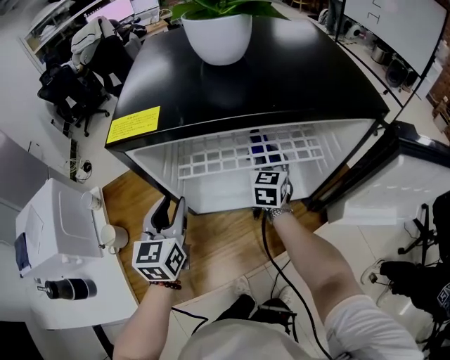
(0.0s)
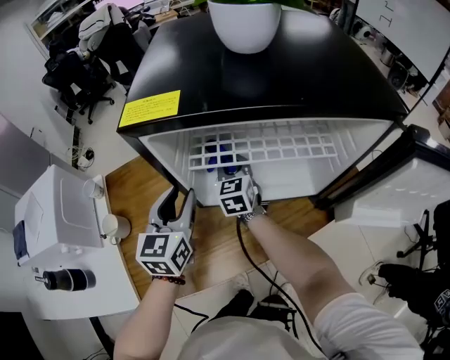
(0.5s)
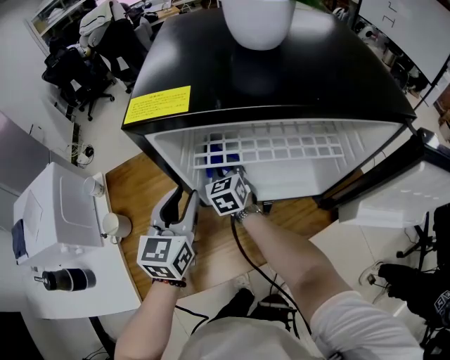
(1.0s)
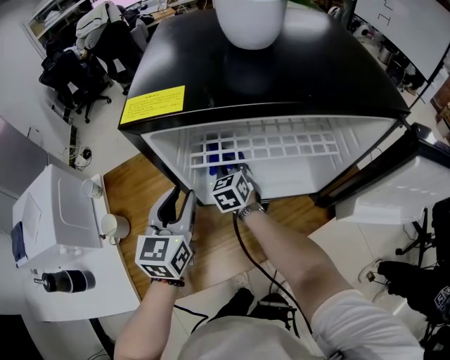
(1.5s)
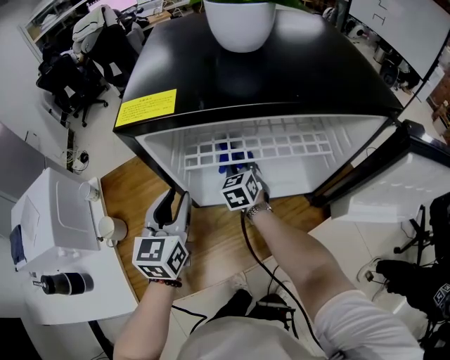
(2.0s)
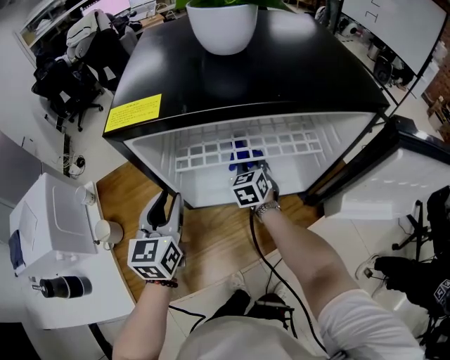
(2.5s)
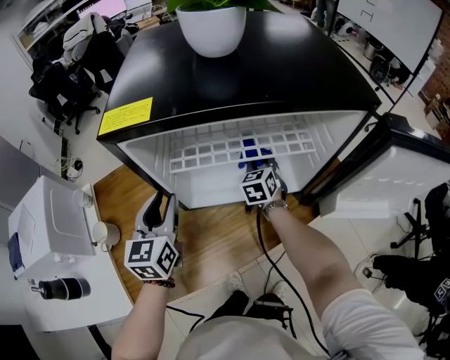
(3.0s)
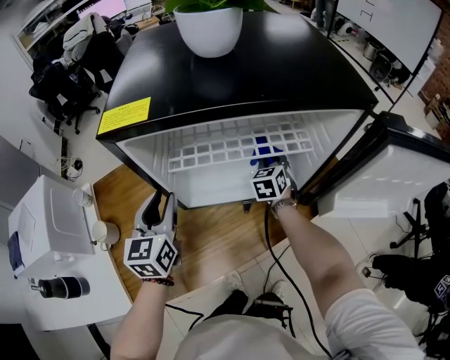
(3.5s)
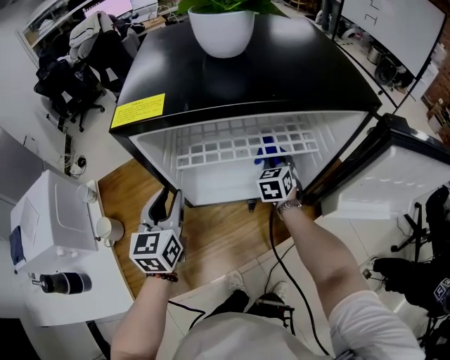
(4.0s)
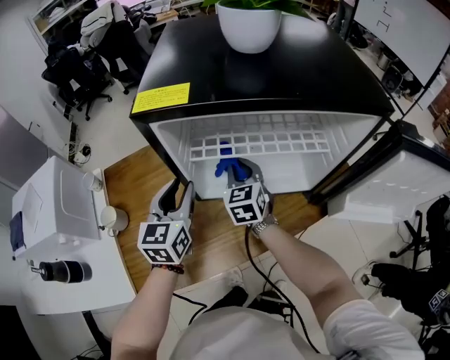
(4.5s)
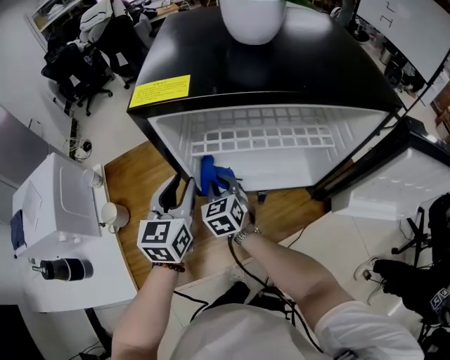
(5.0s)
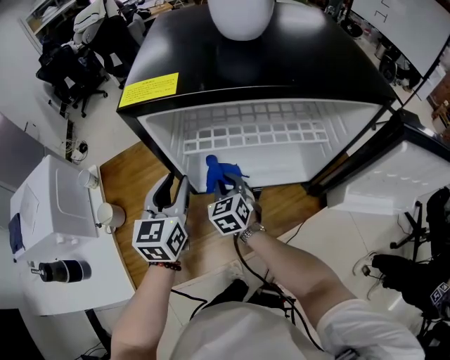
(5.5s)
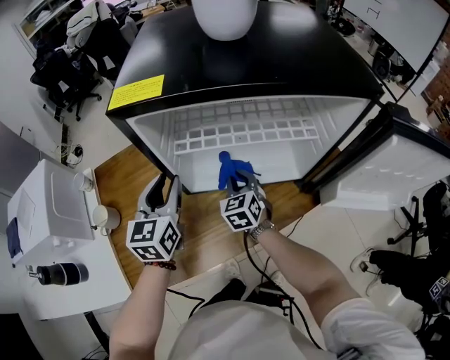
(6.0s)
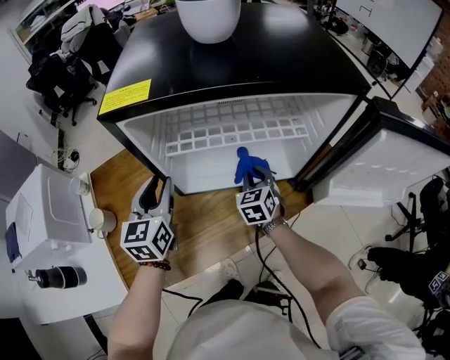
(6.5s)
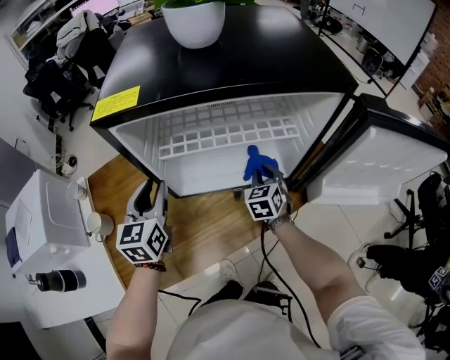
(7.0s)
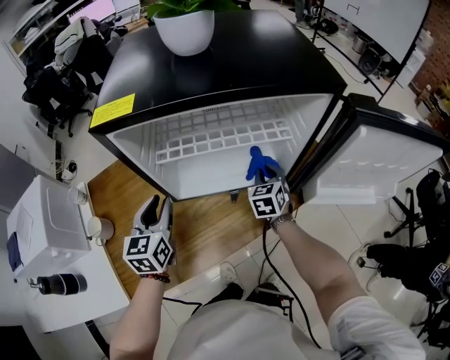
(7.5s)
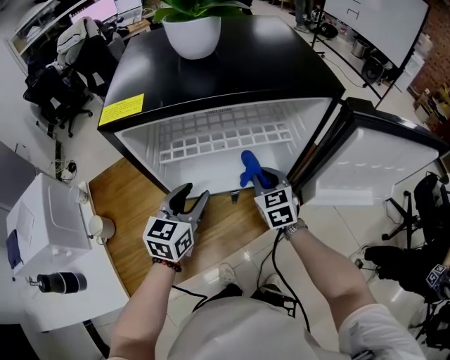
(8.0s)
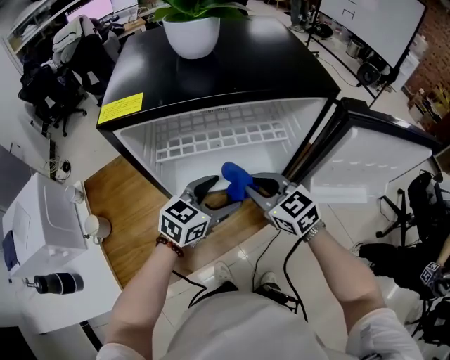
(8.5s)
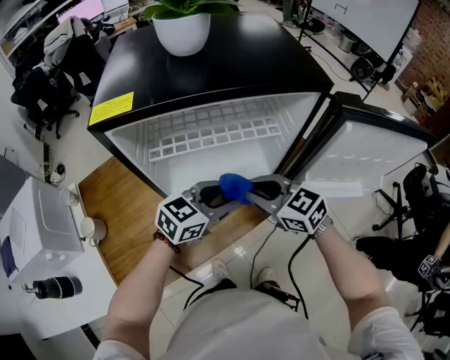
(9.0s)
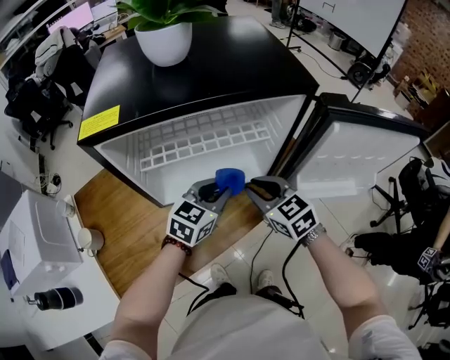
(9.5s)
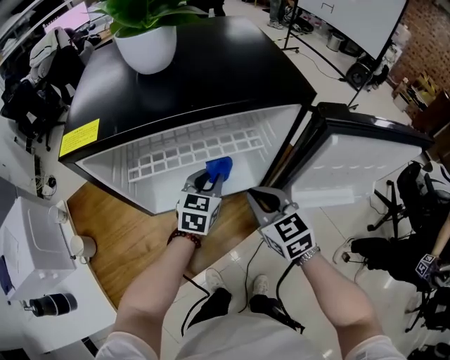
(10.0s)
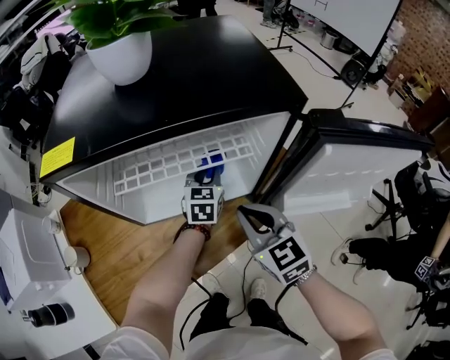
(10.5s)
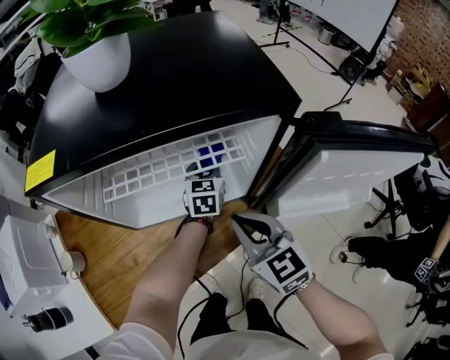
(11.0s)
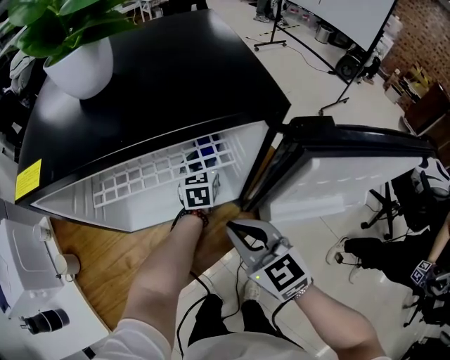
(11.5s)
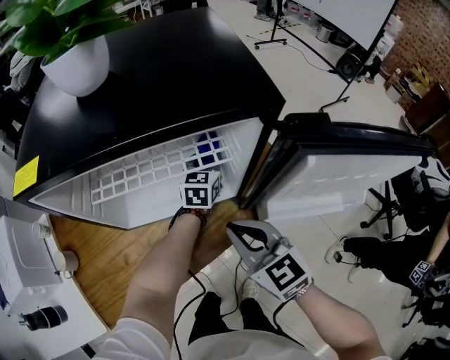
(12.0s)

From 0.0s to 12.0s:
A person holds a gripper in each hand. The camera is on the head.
From 0.0s to 2.0s: The right gripper goes about 15 cm to the left and downward, and rotates roughly 20 degrees.
From 2.0s to 4.0s: The right gripper shifts some 15 cm to the right.
From 4.0s to 6.0s: The right gripper heads to the left and backward, covering approximately 15 cm.
From 6.0s to 8.0s: The left gripper goes approximately 10 cm to the right, and swivels some 20 degrees, while the right gripper heads to the right and upward, covering roughly 15 cm.
From 8.0s to 10.0s: The right gripper moves upward and backward, some 10 cm. The left gripper moves to the right and forward, roughly 15 cm, and closes.
From 10.0s to 12.0s: The left gripper moves forward and to the right, approximately 15 cm.

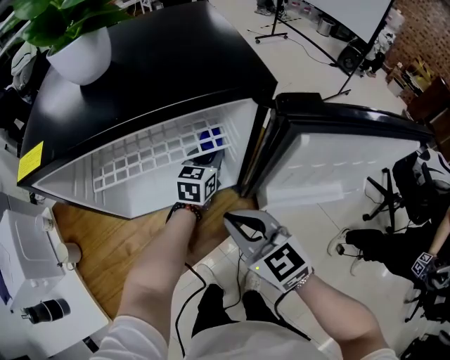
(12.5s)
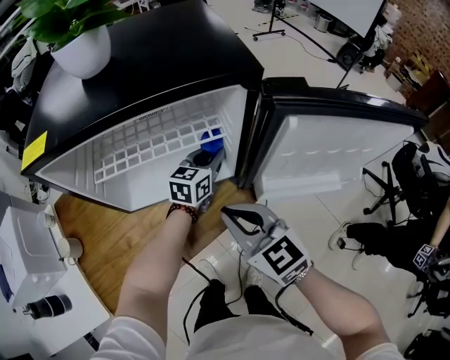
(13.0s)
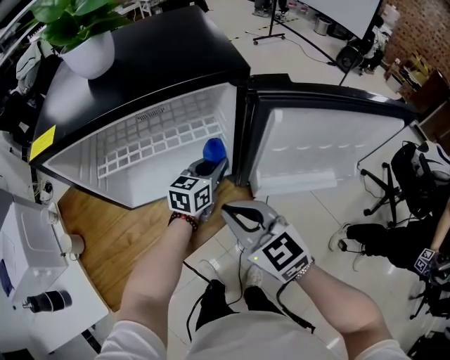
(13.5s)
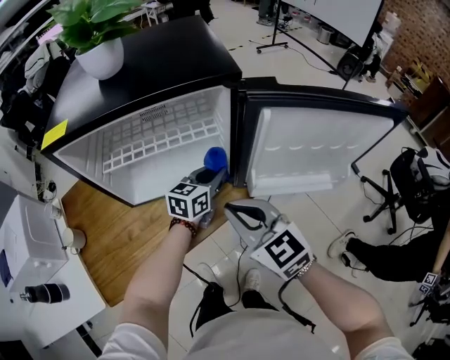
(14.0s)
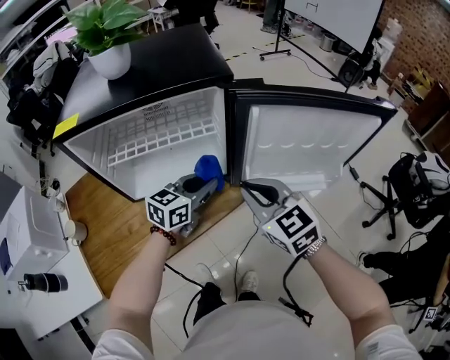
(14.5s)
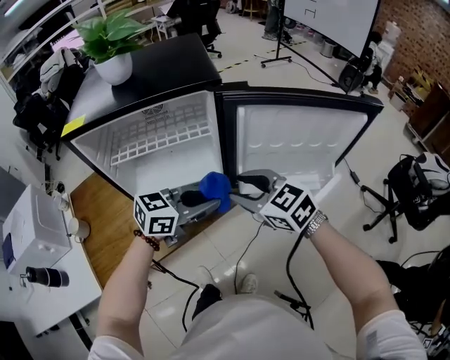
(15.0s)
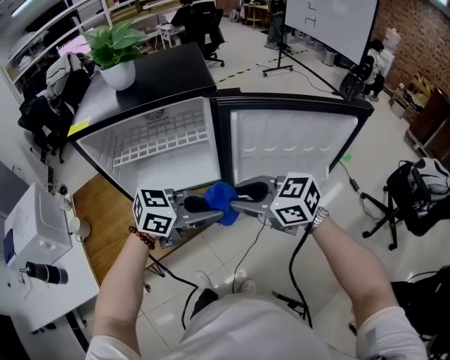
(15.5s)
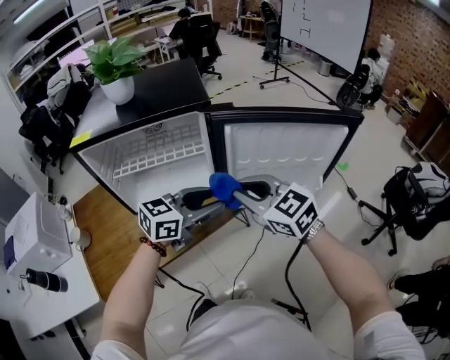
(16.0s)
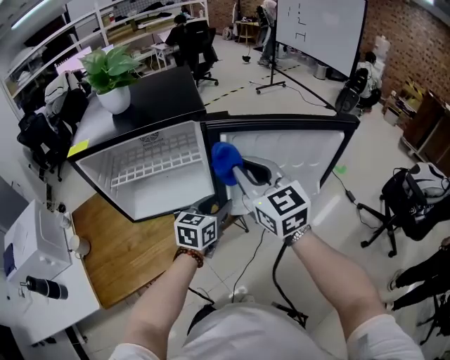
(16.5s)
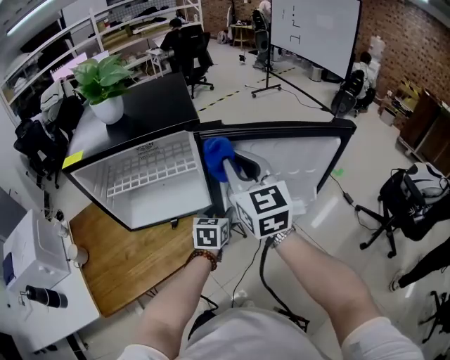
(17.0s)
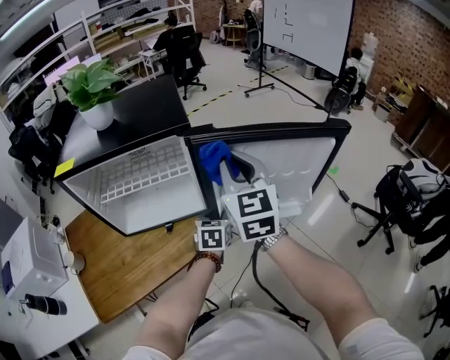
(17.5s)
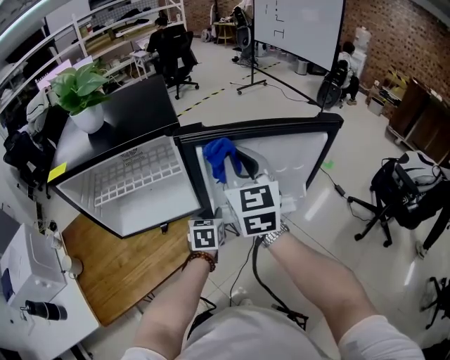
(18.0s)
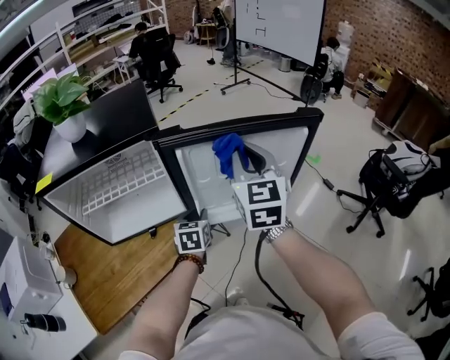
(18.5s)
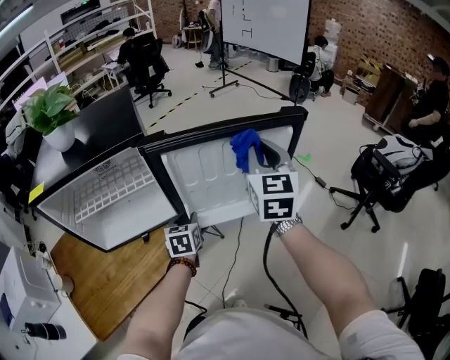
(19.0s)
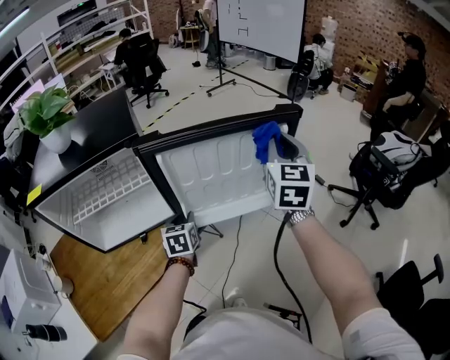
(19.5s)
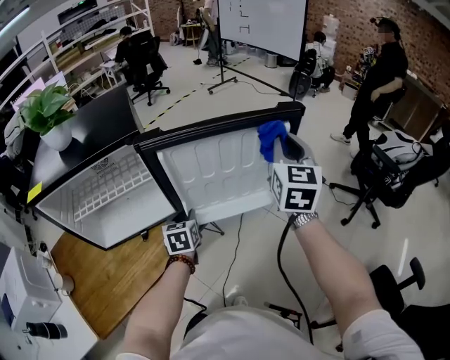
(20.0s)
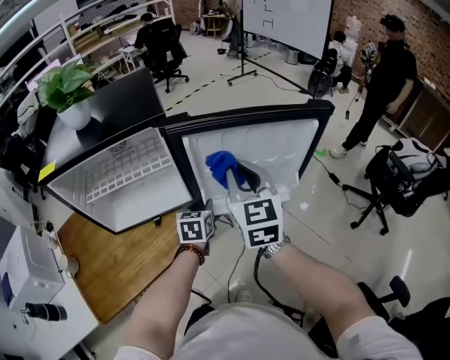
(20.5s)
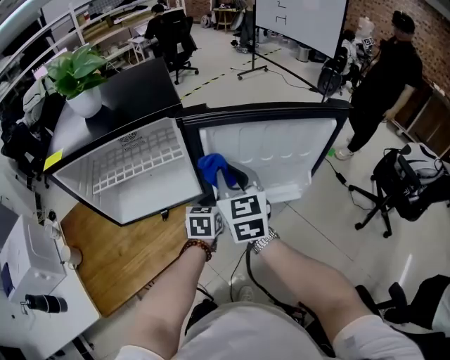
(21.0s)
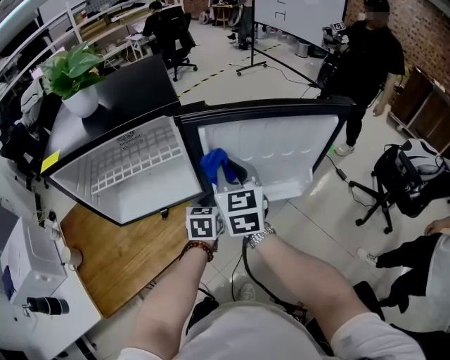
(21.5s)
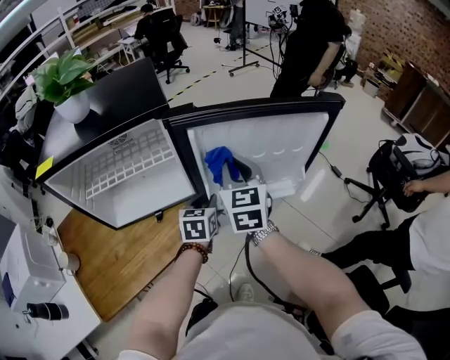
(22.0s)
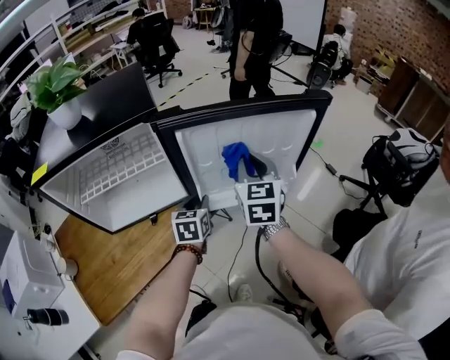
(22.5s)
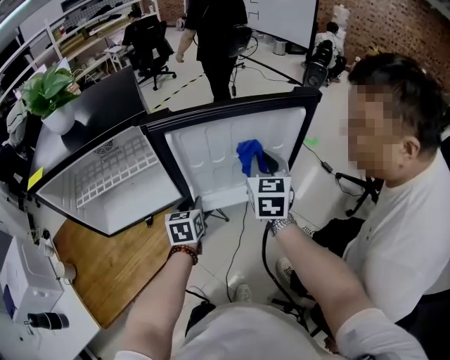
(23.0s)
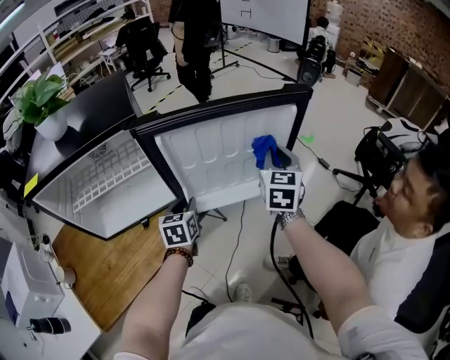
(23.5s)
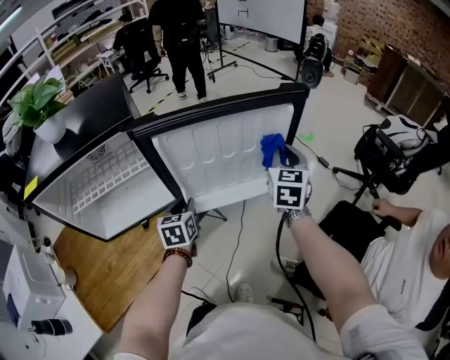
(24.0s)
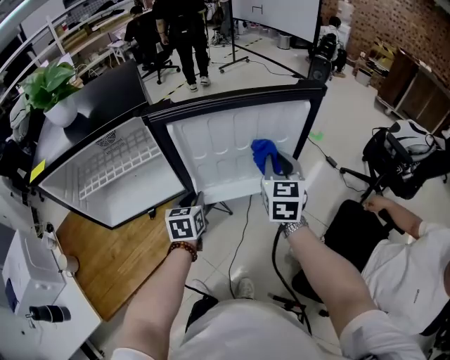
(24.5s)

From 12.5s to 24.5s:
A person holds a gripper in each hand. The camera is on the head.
From 12.5s to 14.5s: The left gripper travels backward by roughly 20 cm; the right gripper heads to the right, covering approximately 10 cm.
From 14.5s to 16.5s: The right gripper goes about 10 cm upward, and opens, then closes again; the left gripper travels upward and back again, about 10 cm each way, and opens.
From 16.5s to 18.5s: The left gripper travels downward by about 5 cm, and closes its fingers; the right gripper moves to the right and forward, approximately 10 cm, and turns by about 30 degrees.
From 18.5s to 20.5s: The right gripper shifts approximately 5 cm downward, and goes to the right and returns, some 15 cm each way.
From 20.5s to 22.5s: The right gripper moves downward and forward, about 10 cm.
From 22.5s to 24.5s: The right gripper shifts about 10 cm to the right.

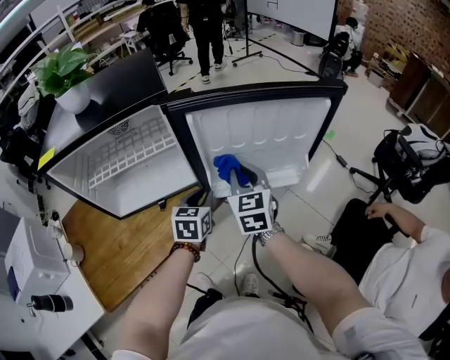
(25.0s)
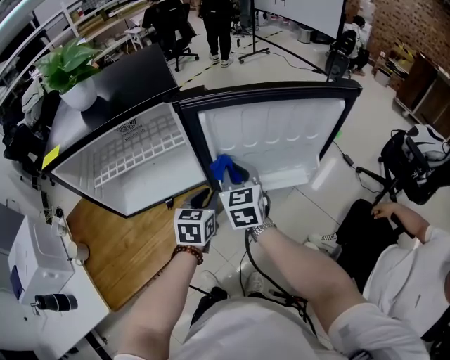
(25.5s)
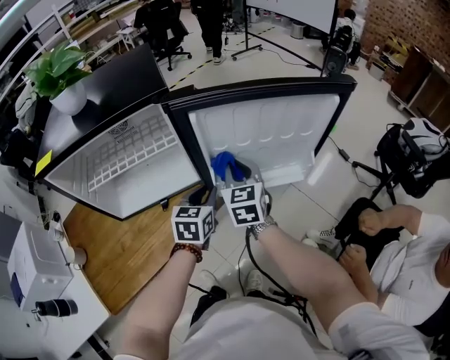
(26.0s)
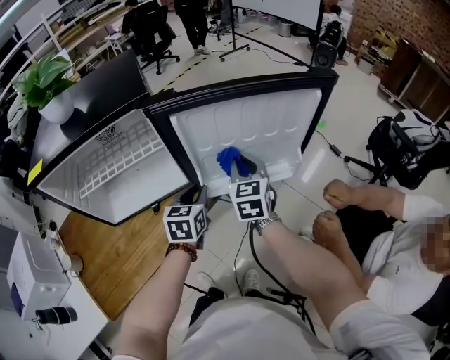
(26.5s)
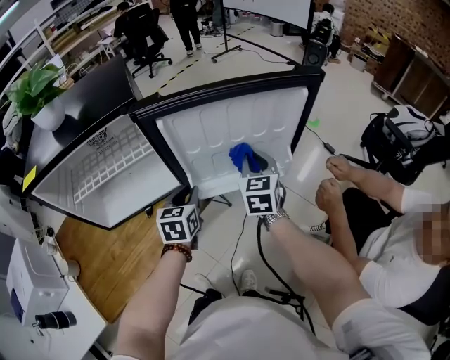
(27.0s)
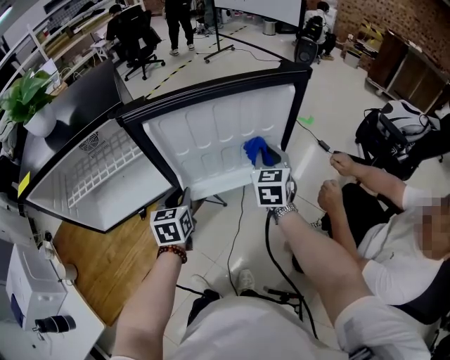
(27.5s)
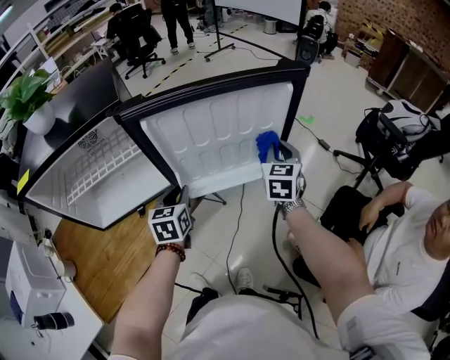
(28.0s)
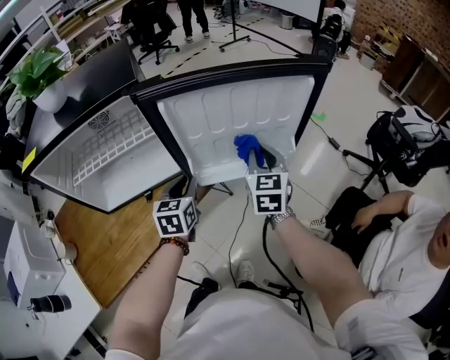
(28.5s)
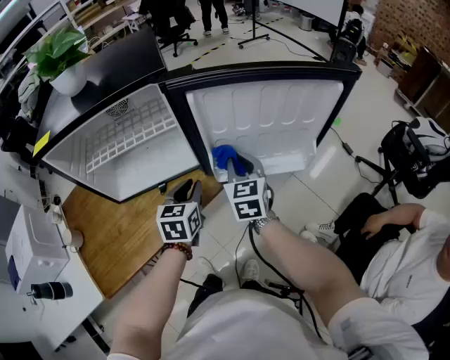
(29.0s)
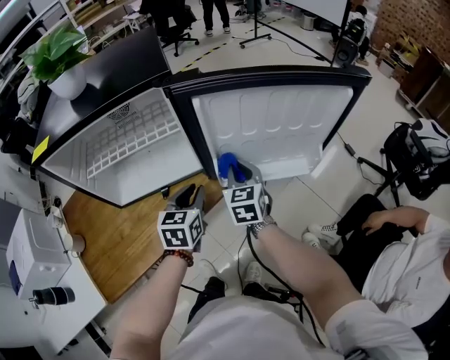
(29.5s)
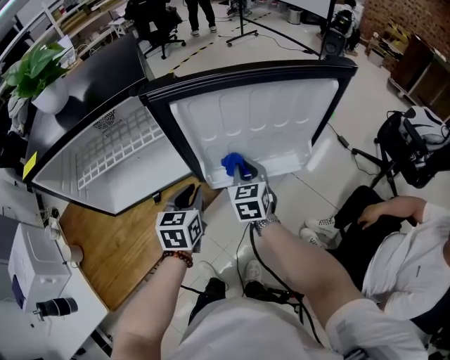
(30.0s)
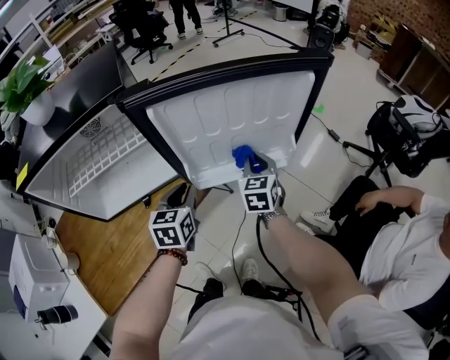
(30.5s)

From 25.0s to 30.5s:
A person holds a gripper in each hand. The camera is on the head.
From 25.0s to 27.0s: The right gripper heads to the right, covering roughly 10 cm.
From 27.0s to 28.5s: The right gripper reaches approximately 10 cm to the right, then returns.
From 28.5s to 30.5s: The right gripper moves downward, some 10 cm, and reaches roughly 15 cm to the left, then returns.
